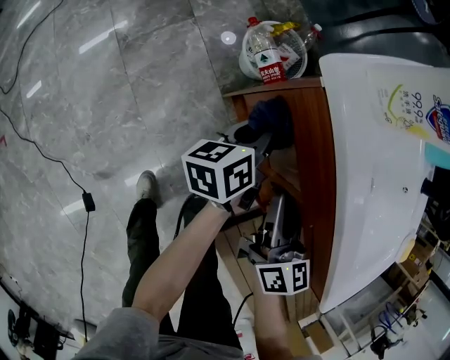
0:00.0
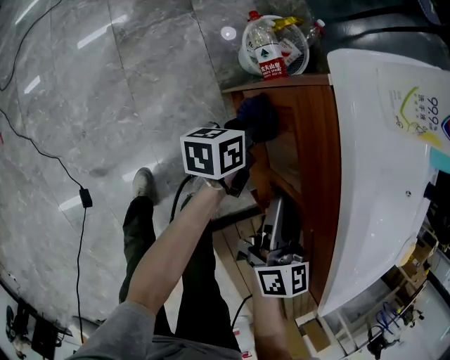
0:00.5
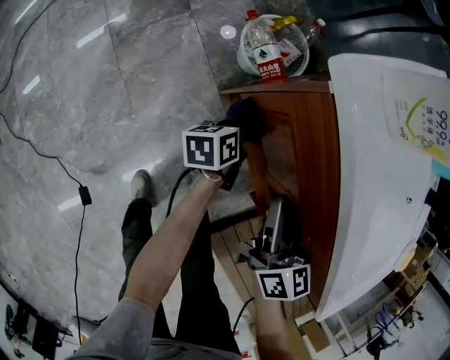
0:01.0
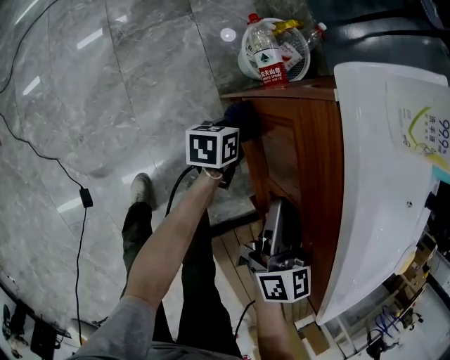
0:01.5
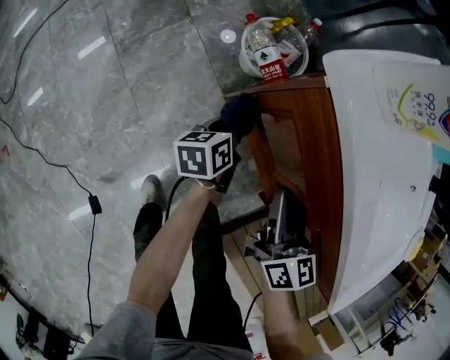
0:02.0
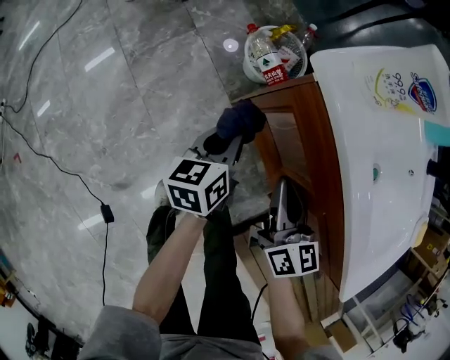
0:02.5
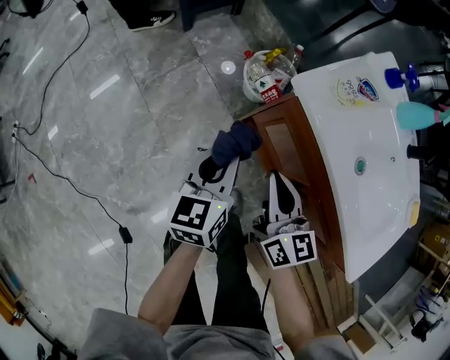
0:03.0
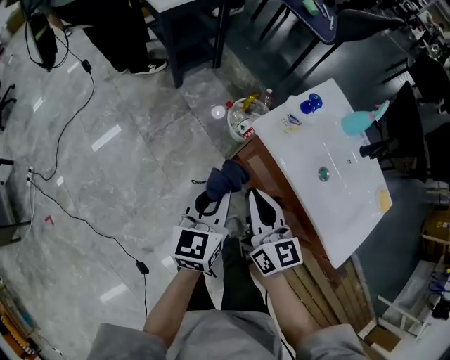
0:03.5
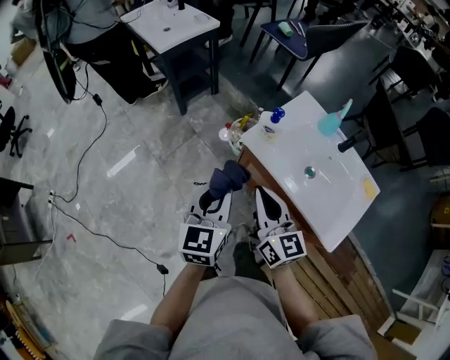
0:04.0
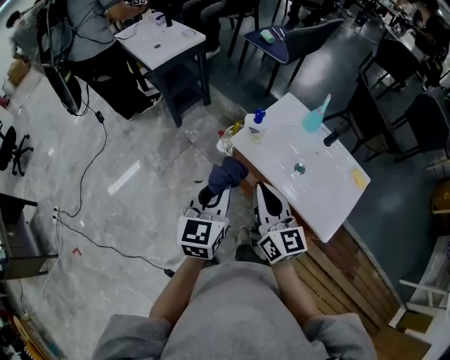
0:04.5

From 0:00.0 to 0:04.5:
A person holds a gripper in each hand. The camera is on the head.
From 0:00.0 to 0:02.0: The left gripper heads downward, covering roughly 10 cm.
From 0:02.0 to 0:04.5: Both grippers move upward, roughly 50 cm. The left gripper twists roughly 50 degrees clockwise, seen from behind. The right gripper swivels some 20 degrees.

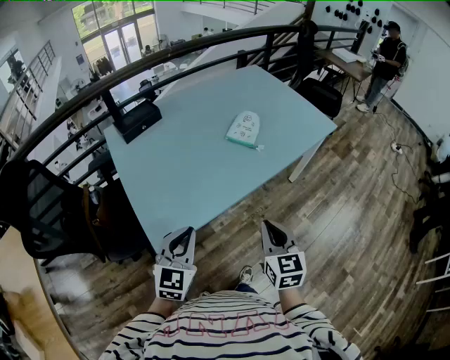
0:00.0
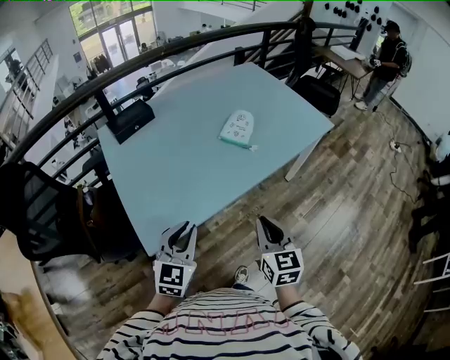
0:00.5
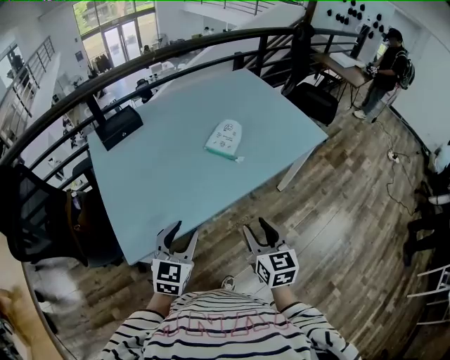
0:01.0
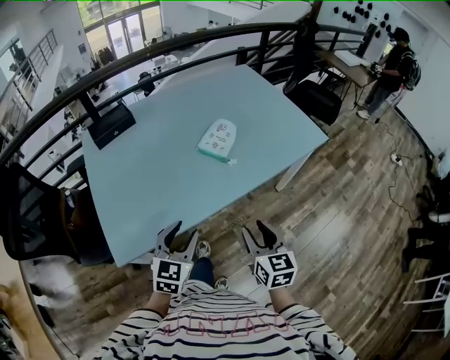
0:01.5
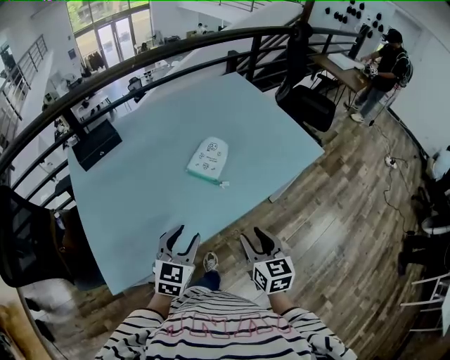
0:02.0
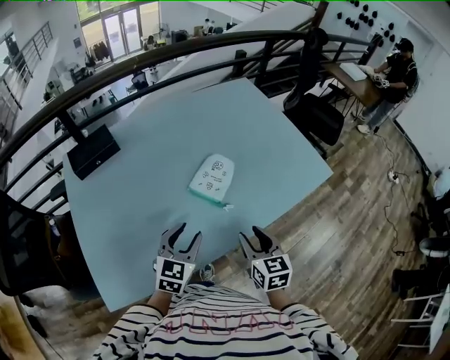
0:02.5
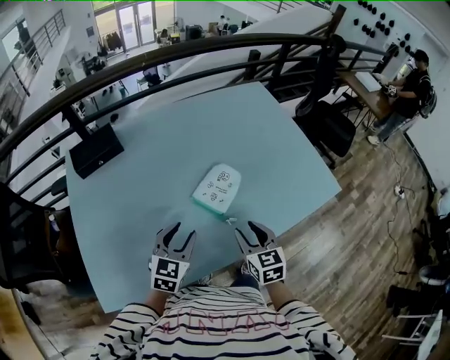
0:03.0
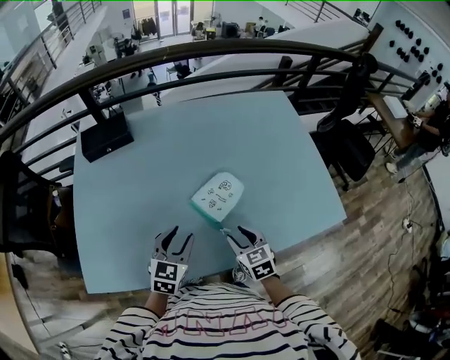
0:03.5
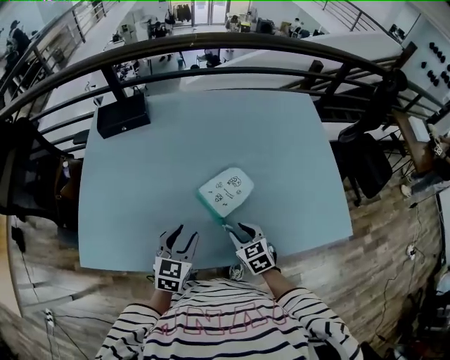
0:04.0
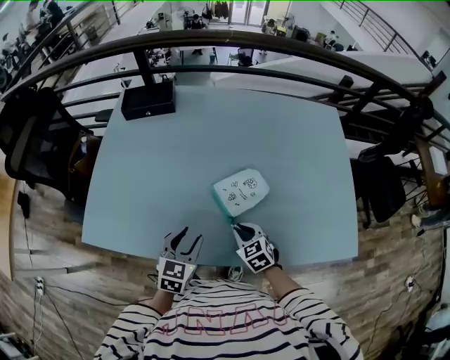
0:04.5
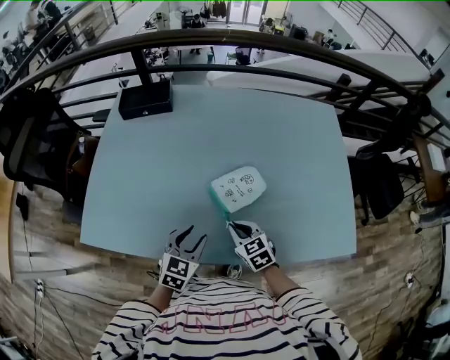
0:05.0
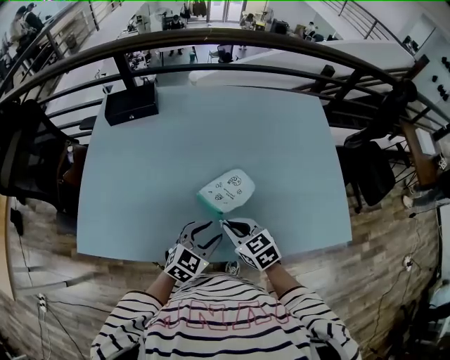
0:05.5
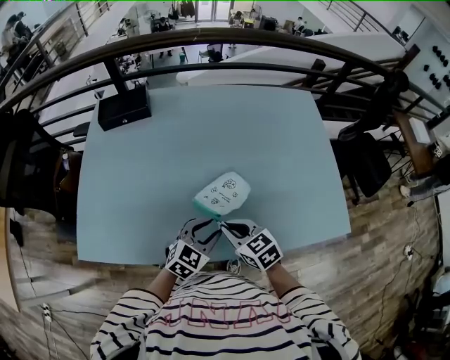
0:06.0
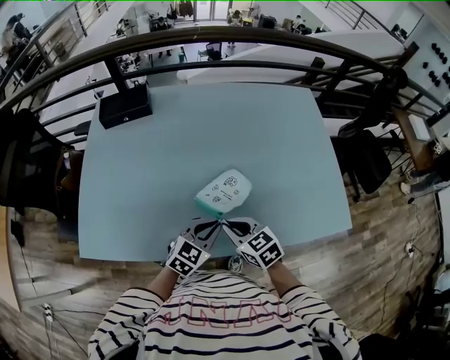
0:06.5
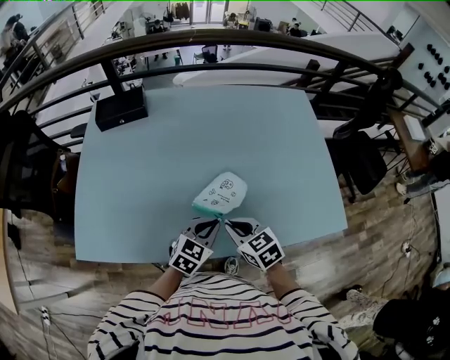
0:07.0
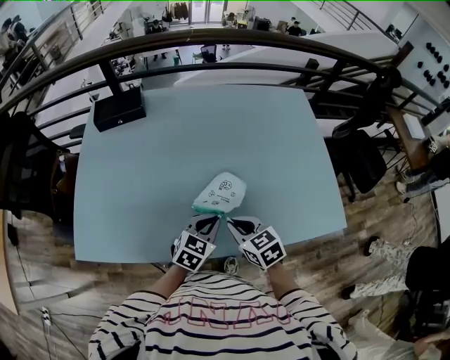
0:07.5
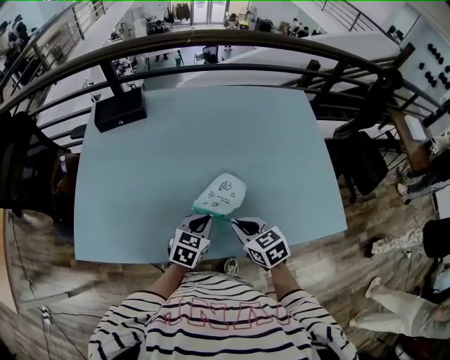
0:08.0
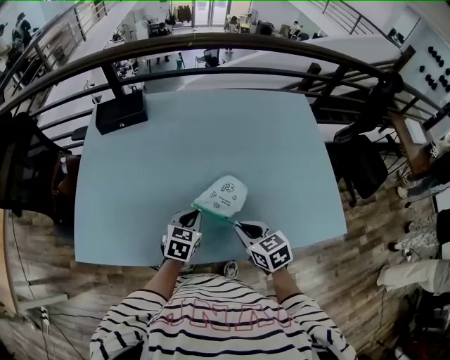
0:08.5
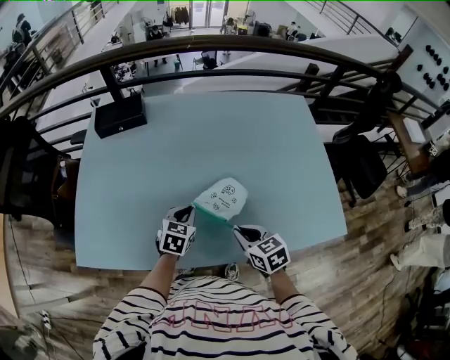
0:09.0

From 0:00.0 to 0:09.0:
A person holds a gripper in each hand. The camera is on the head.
From 0:00.0 to 0:02.0: Both grippers travel together forward and to the right, roughly 25 cm. The left gripper opens up. The right gripper opens.
From 0:02.0 to 0:04.5: The right gripper moves about 30 cm, turns by some 60 degrees, and closes up; the left gripper ends up about 20 cm from where it was, and swivels some 40 degrees.
From 0:04.5 to 0:07.0: The right gripper shifts roughly 10 cm upward, while the left gripper travels to the right by approximately 10 cm, turns by about 30 degrees, and closes.
From 0:07.0 to 0:09.0: The left gripper is displaced forward and to the left by roughly 10 cm, and changes its angle by some 20 degrees.

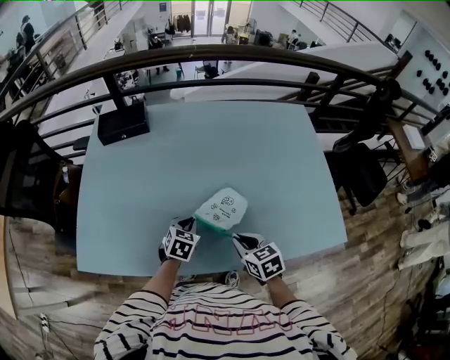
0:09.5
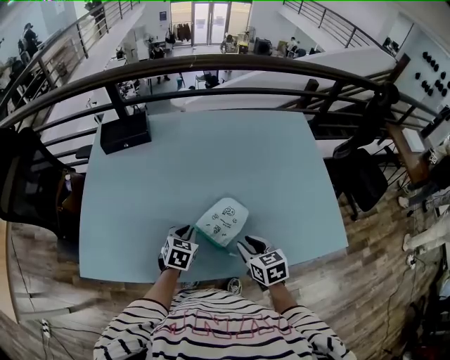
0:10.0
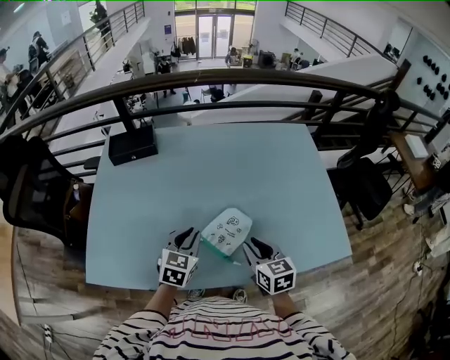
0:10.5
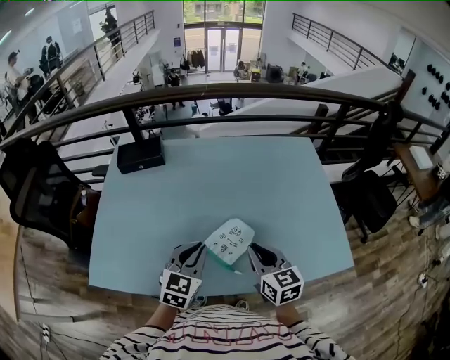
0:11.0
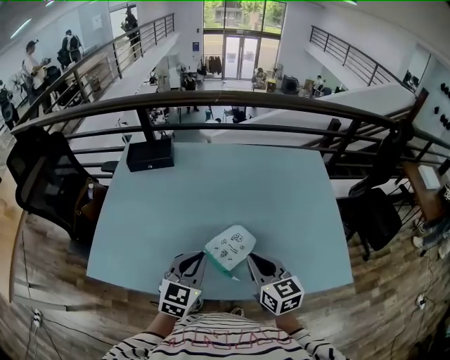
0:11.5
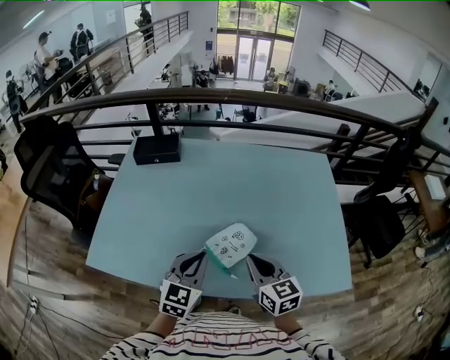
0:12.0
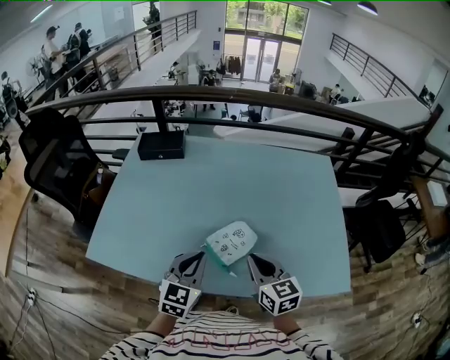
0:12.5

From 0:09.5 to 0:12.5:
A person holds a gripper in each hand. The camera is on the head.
From 0:09.5 to 0:11.0: Both grippers travel together upward, approximately 15 cm. The left gripper changes its angle by roughly 30 degrees; the right gripper turns by roughly 20 degrees.
From 0:11.0 to 0:12.5: The grippers move only a little.

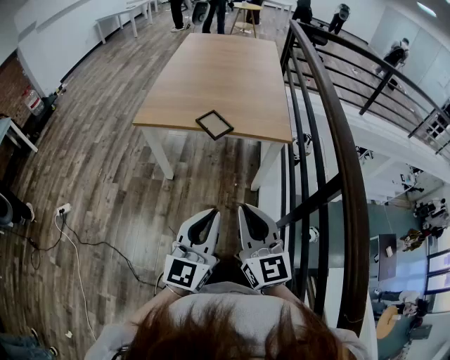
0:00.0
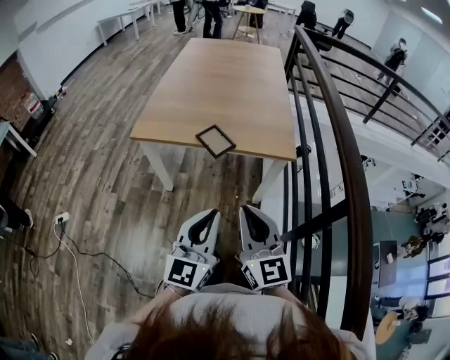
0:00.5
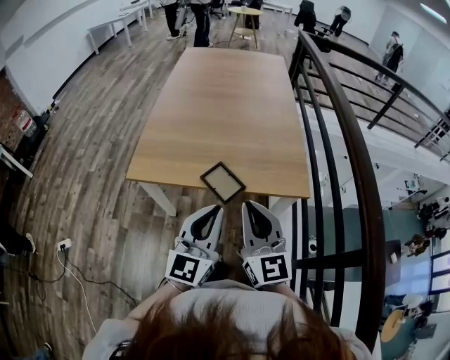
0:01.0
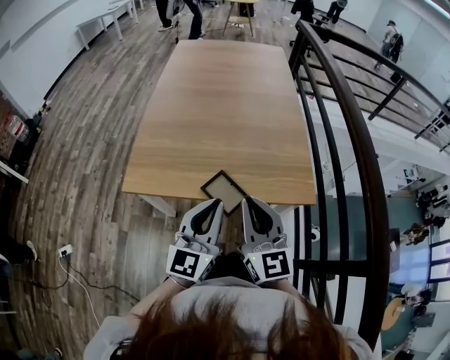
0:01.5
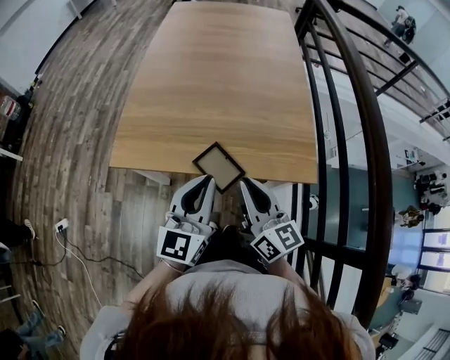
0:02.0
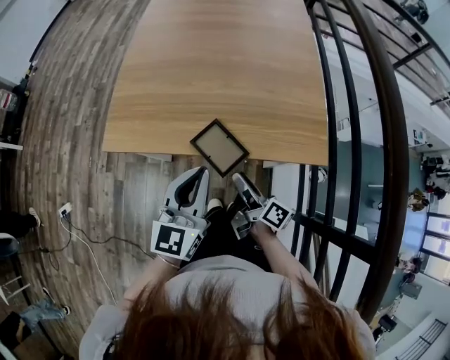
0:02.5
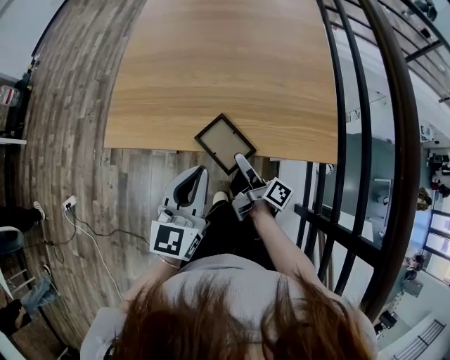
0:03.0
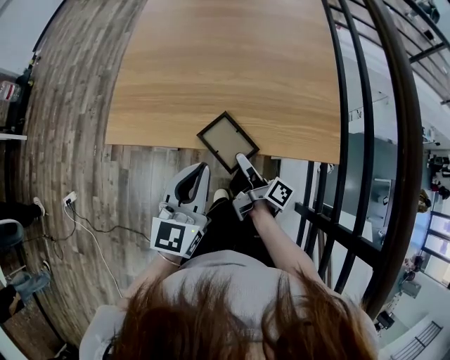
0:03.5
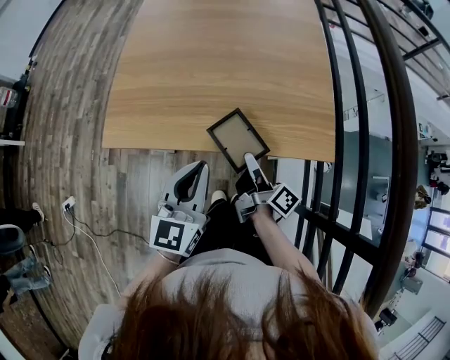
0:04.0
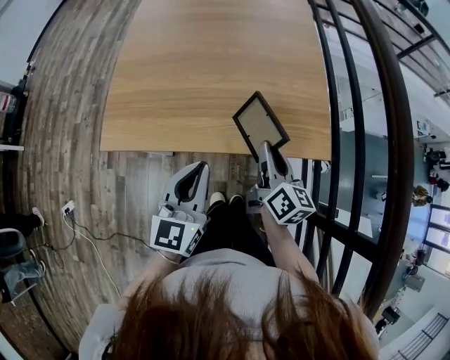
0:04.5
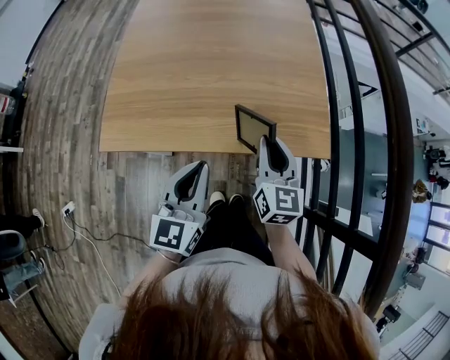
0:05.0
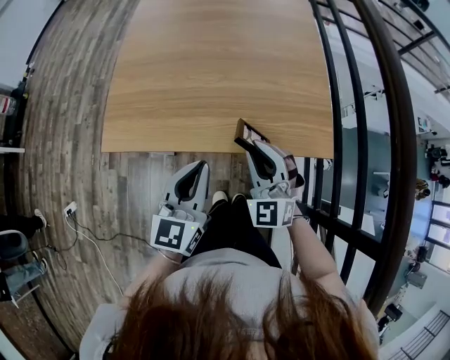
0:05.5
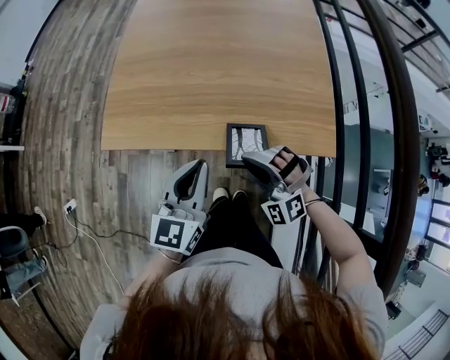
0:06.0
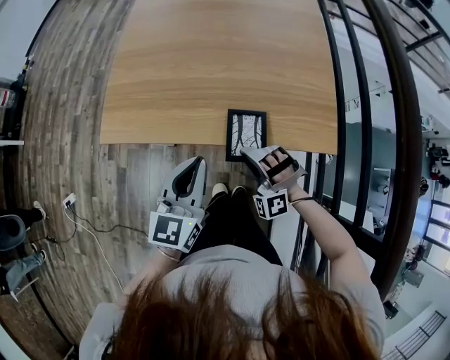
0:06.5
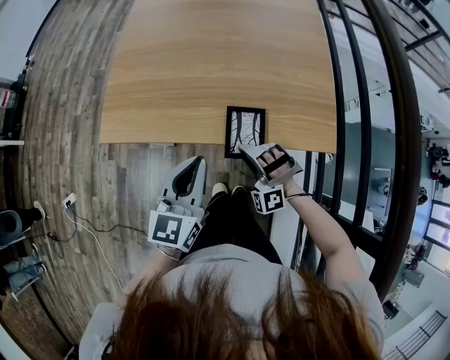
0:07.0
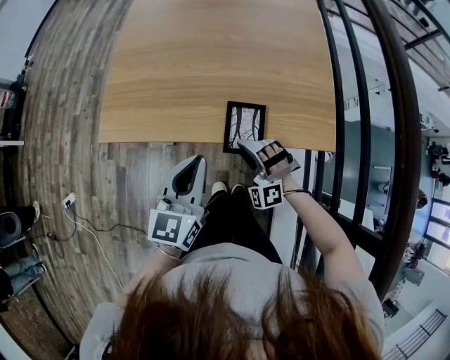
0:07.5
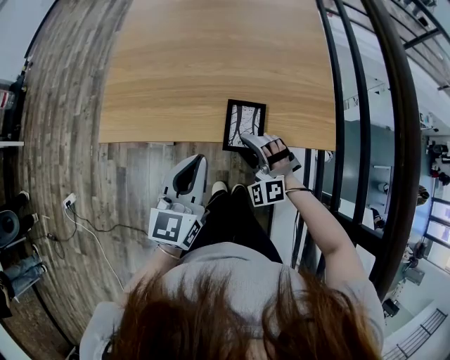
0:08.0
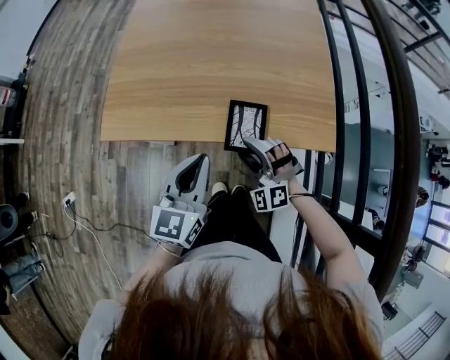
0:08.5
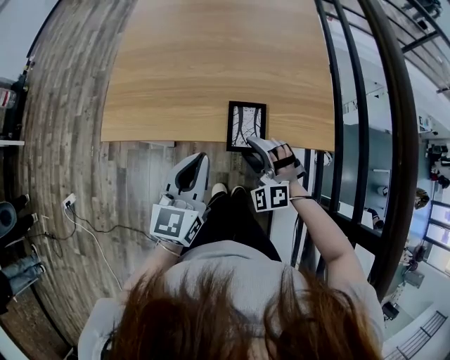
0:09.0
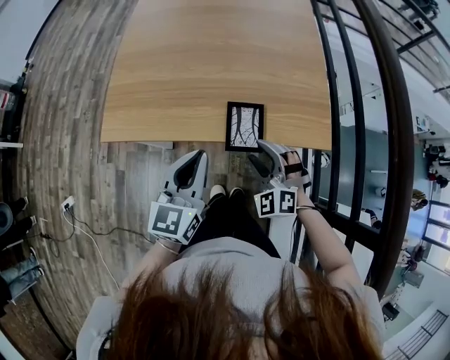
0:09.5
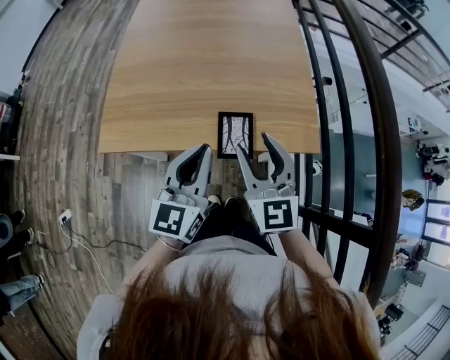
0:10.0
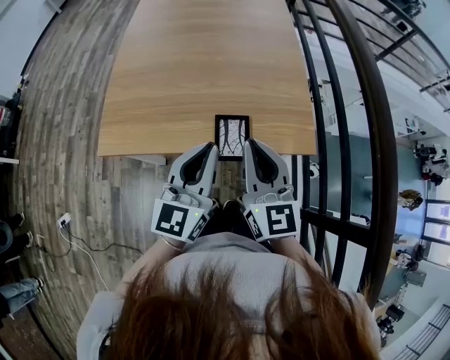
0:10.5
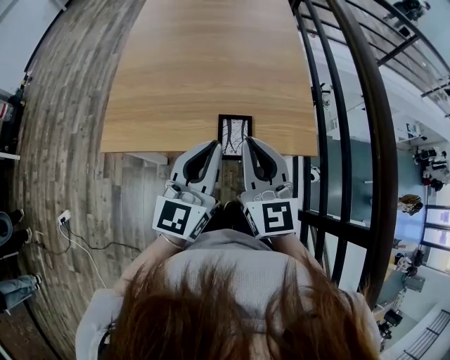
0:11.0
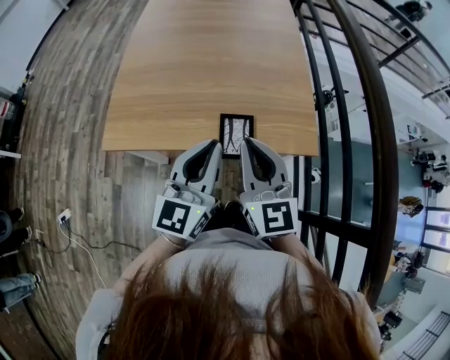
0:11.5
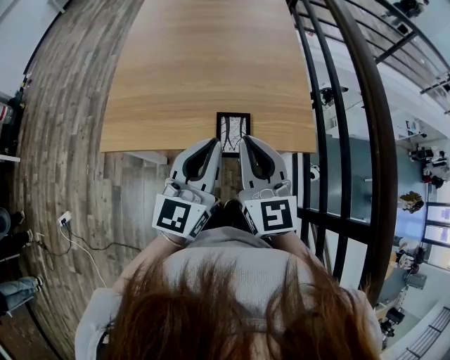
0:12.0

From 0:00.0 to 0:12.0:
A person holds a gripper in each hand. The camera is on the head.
From 0:00.0 to 0:02.0: Both grippers are carried forward, roughly 40 cm. The right gripper swivels some 30 degrees.
From 0:02.0 to 0:04.0: The left gripper is displaced downward by some 5 cm. The right gripper is displaced downward by some 20 cm, rolls clockwise, seen from behind, by approximately 60 degrees, and opens and closes again.
From 0:04.0 to 0:06.0: The right gripper rotates around the line of its fingers by about 150 degrees, counterclockwise from behind.
From 0:06.0 to 0:08.0: The right gripper travels downward by roughly 10 cm, and opens up.
From 0:08.0 to 0:10.0: The left gripper heads upward, covering about 5 cm. The right gripper shifts some 25 cm upward, and rolls clockwise, seen from behind, by some 60 degrees.
From 0:10.0 to 0:12.0: The right gripper closes its fingers.
